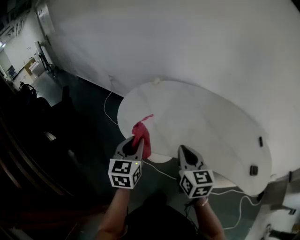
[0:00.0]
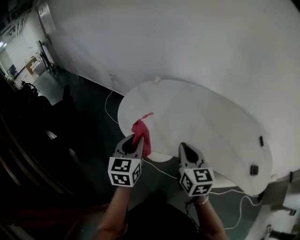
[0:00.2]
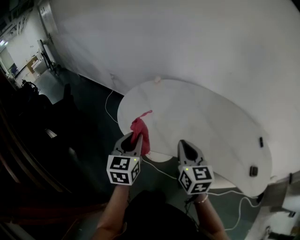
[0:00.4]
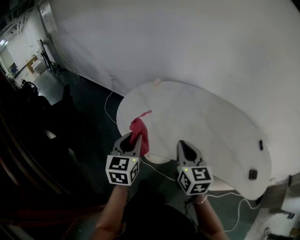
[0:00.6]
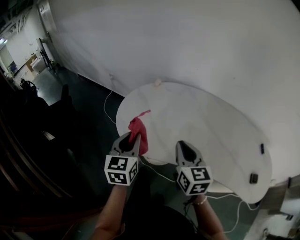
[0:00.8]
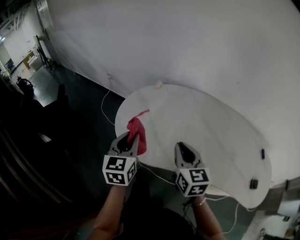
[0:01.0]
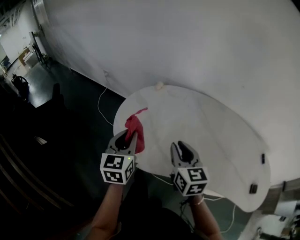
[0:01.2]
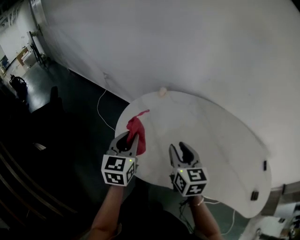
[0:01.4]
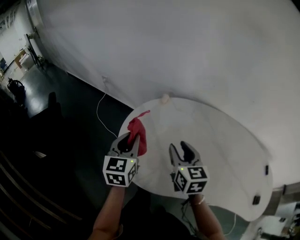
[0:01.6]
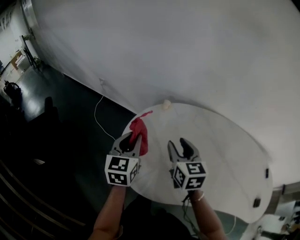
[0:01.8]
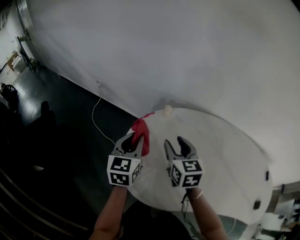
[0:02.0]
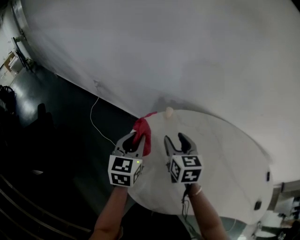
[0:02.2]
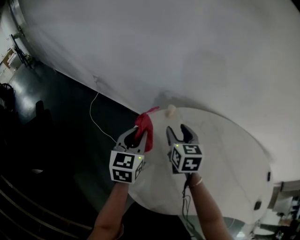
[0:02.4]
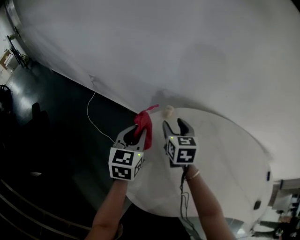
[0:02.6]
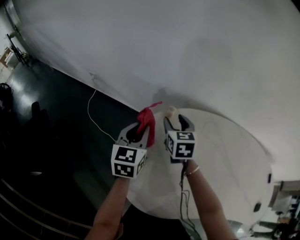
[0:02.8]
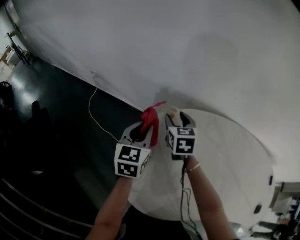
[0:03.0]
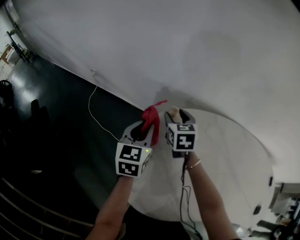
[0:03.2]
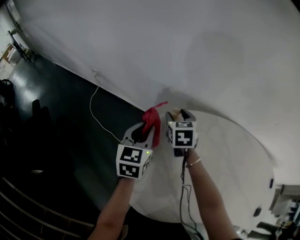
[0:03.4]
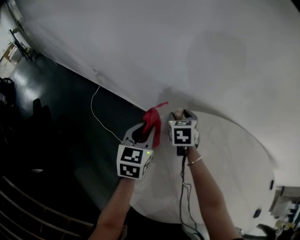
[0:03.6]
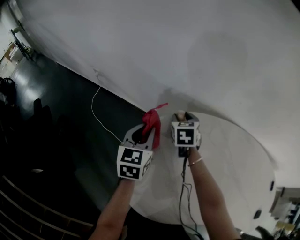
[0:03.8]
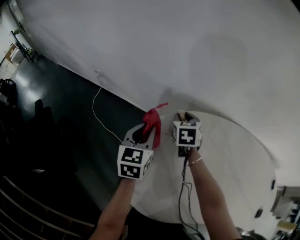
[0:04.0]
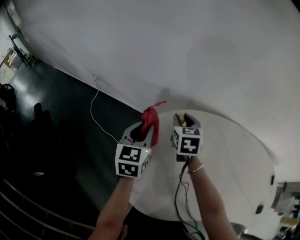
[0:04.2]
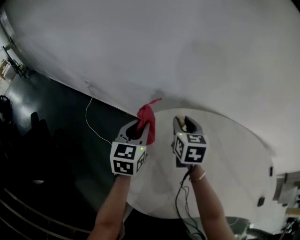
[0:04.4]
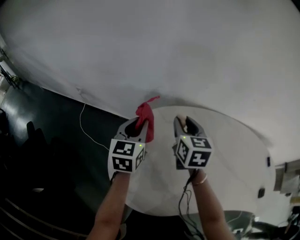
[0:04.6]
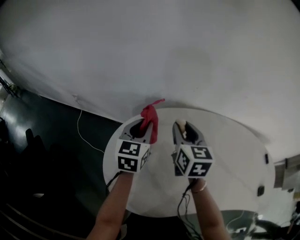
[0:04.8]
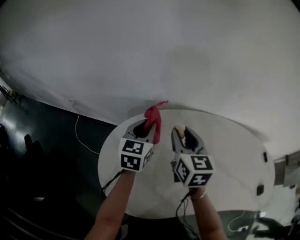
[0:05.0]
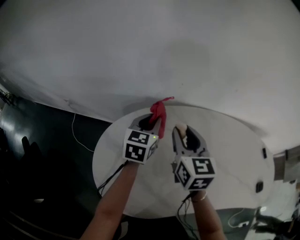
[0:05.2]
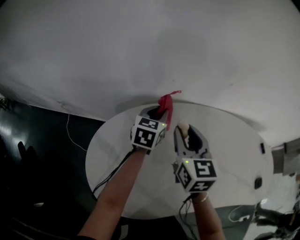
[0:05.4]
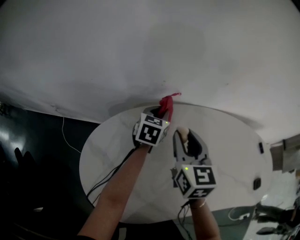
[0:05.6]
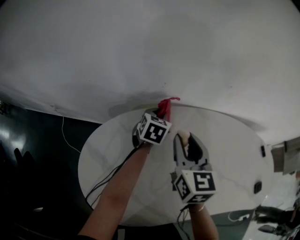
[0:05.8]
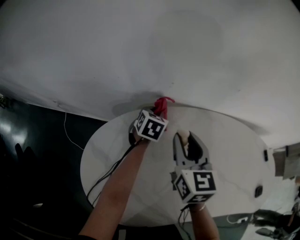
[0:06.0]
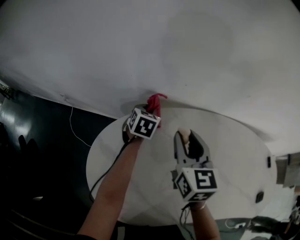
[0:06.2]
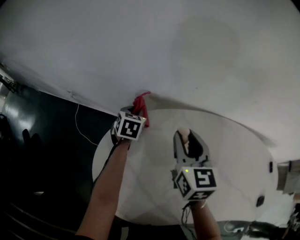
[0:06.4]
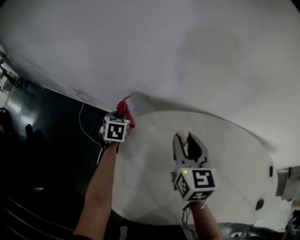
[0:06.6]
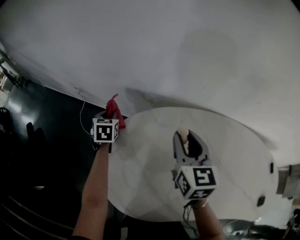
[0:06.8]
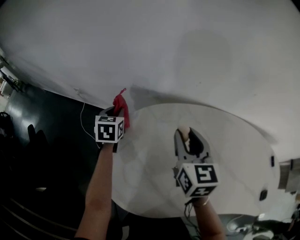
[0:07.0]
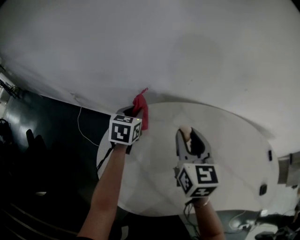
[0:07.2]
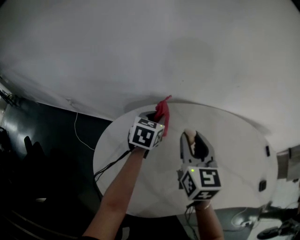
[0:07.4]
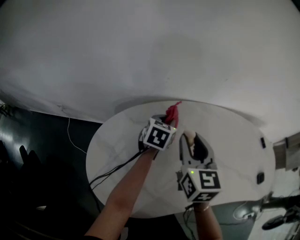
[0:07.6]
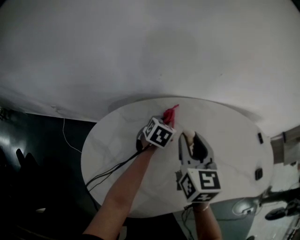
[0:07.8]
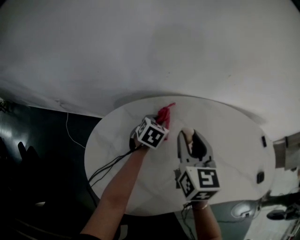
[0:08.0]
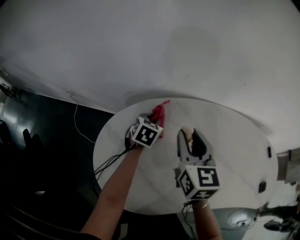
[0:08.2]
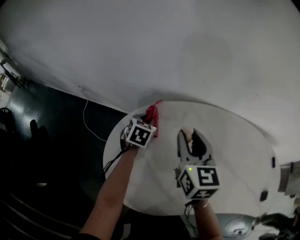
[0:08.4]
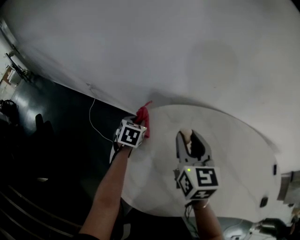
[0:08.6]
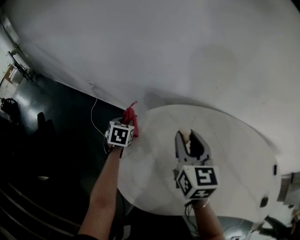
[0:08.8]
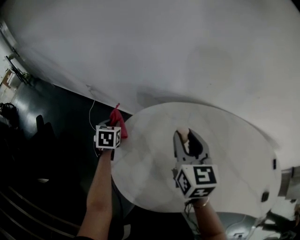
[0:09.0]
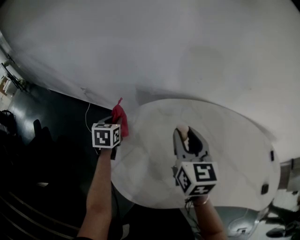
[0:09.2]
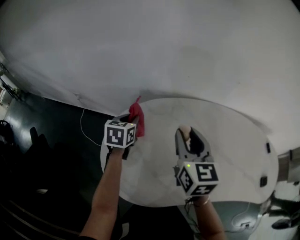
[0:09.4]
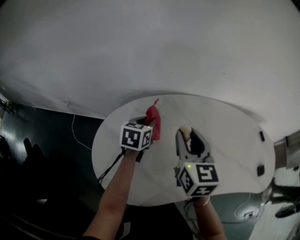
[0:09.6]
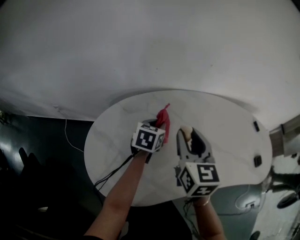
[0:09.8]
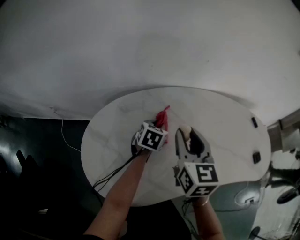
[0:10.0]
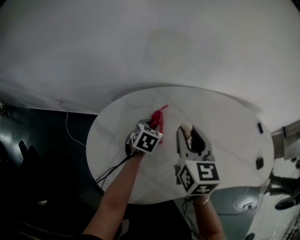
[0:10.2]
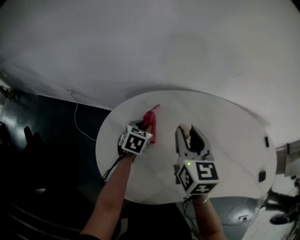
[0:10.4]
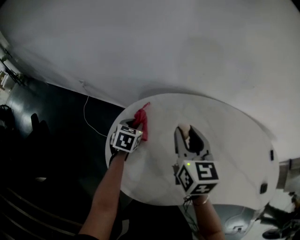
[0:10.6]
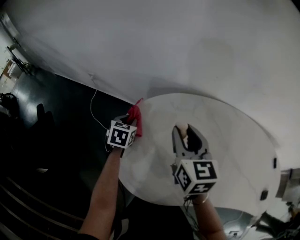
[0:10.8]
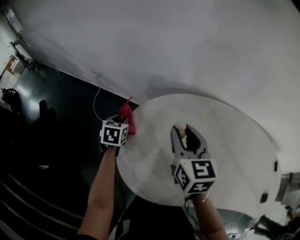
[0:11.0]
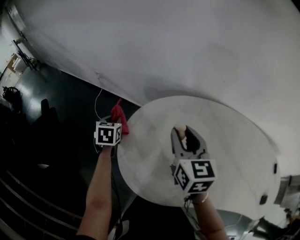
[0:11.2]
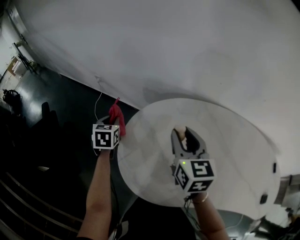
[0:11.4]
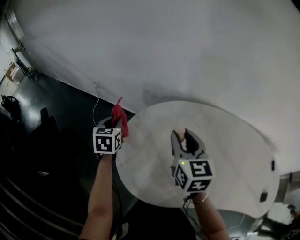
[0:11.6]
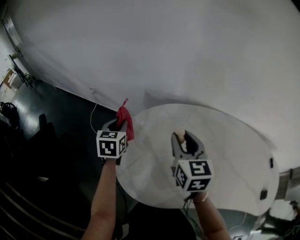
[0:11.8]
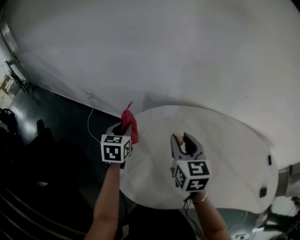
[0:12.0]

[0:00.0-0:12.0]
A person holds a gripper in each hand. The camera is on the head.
0:00.0 to 0:01.6: The two grippers go roughly 25 cm forward. The right gripper opens up.
0:01.6 to 0:03.0: The grippers both shift forward by roughly 20 cm.
0:03.0 to 0:04.4: The right gripper is displaced upward and to the right by some 10 cm.
0:04.4 to 0:06.0: The left gripper shifts approximately 35 cm to the right, forward and downward, and changes its angle by about 30 degrees. Meanwhile the right gripper goes about 20 cm to the right.
0:06.0 to 0:07.6: The right gripper ends up some 10 cm from where it was.
0:07.6 to 0:09.0: The left gripper changes place by roughly 40 cm, and rotates about 40 degrees, while the right gripper shifts by some 15 cm.
0:09.0 to 0:10.4: The left gripper reaches approximately 5 cm upward, then returns, and turns by some 30 degrees.
0:10.4 to 0:12.0: The left gripper ends up some 20 cm from where it was, and turns by approximately 30 degrees.

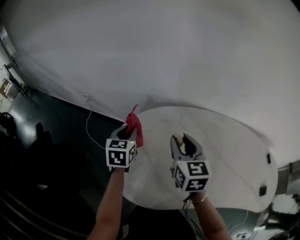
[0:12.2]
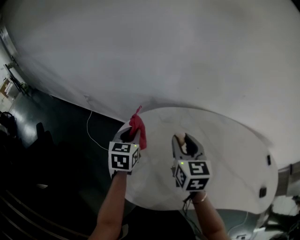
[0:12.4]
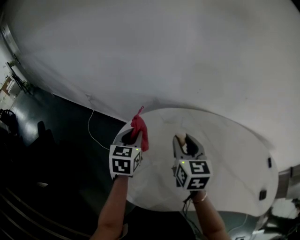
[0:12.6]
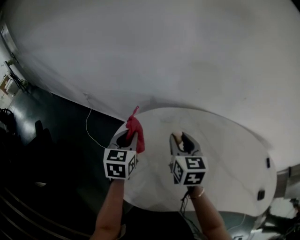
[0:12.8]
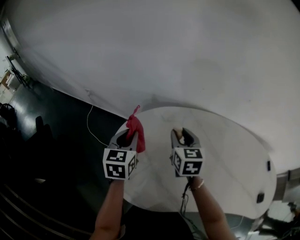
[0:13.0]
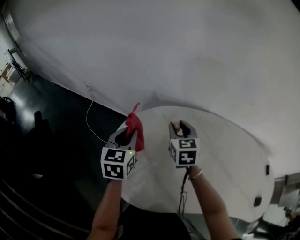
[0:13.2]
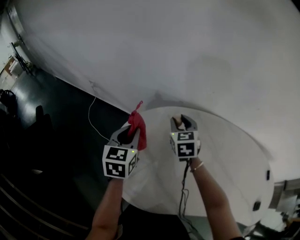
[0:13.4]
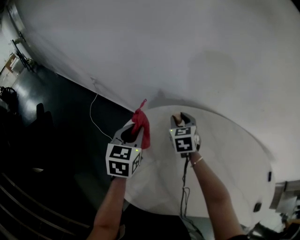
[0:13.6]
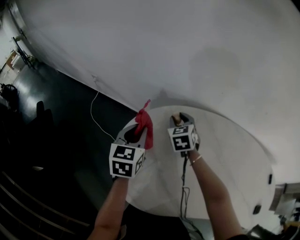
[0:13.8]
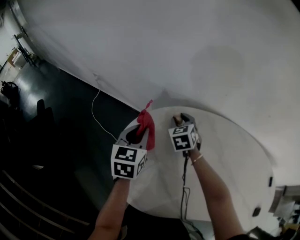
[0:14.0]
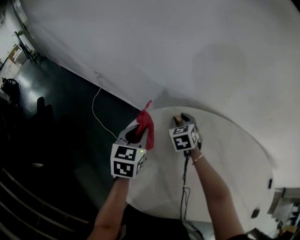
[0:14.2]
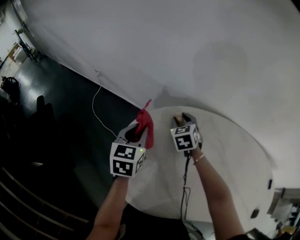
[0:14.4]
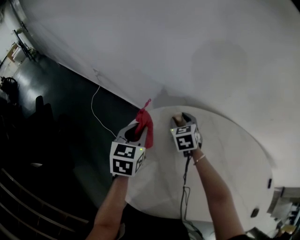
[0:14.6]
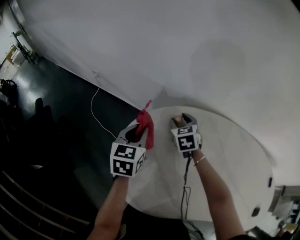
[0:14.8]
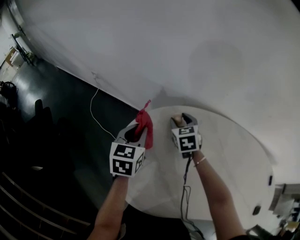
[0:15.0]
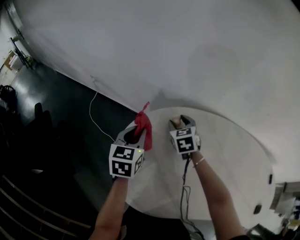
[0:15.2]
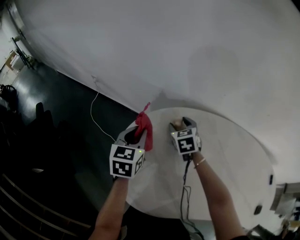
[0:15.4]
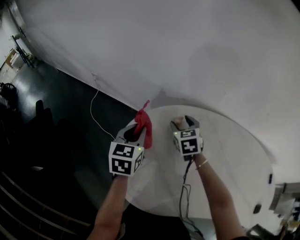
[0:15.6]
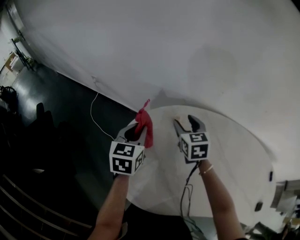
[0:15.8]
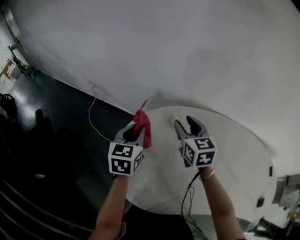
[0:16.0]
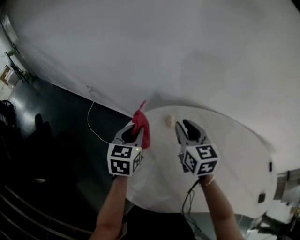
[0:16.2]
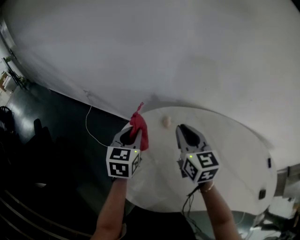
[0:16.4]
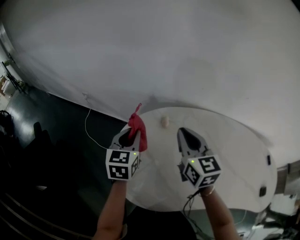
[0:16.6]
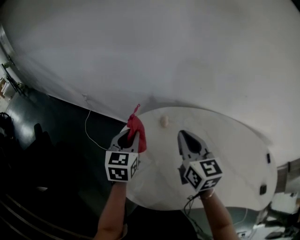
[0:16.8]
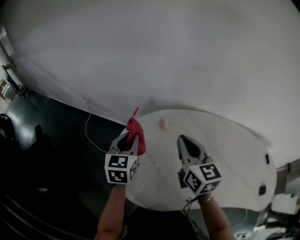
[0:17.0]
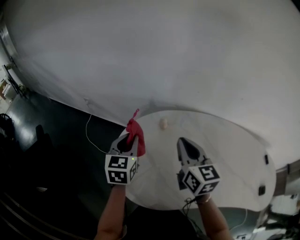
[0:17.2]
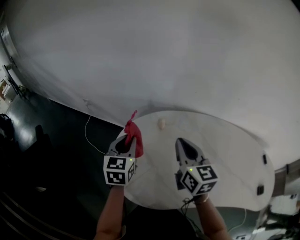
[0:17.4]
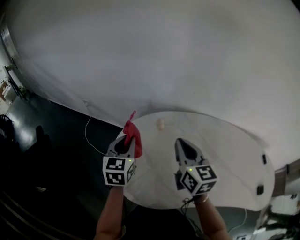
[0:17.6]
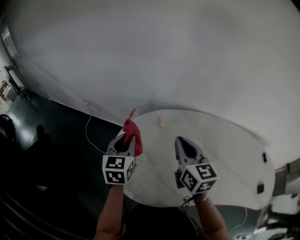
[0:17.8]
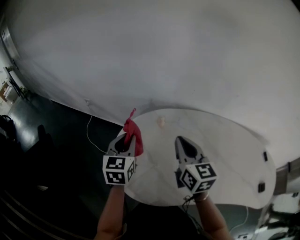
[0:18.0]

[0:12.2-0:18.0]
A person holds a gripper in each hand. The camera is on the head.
0:12.2 to 0:13.6: The right gripper is displaced forward and downward by about 20 cm, and turns by some 30 degrees.
0:13.6 to 0:15.0: There are only small adjustments of the grippers.
0:15.0 to 0:16.6: The right gripper is displaced upward and backward by approximately 25 cm, swivels roughly 30 degrees, and closes, while the left gripper moves upward, some 5 cm.
0:16.6 to 0:18.0: Both grippers move backward, about 5 cm.

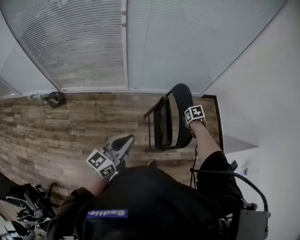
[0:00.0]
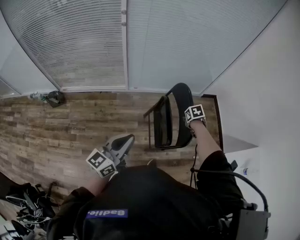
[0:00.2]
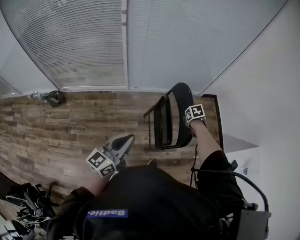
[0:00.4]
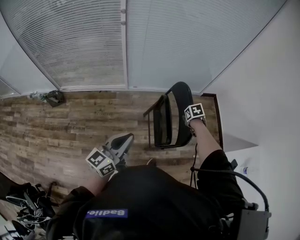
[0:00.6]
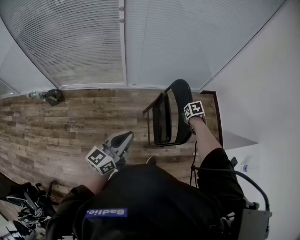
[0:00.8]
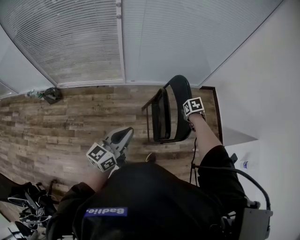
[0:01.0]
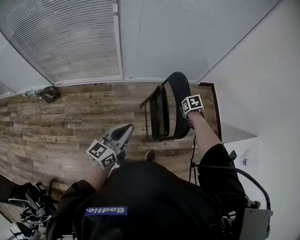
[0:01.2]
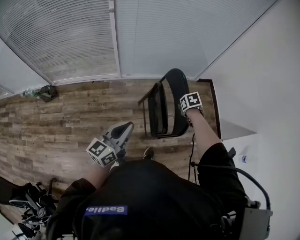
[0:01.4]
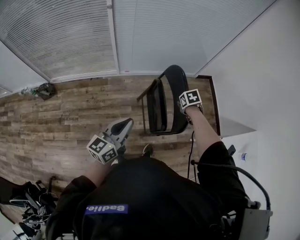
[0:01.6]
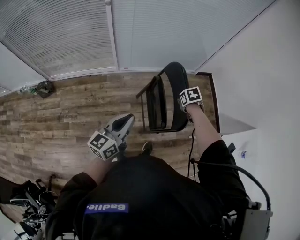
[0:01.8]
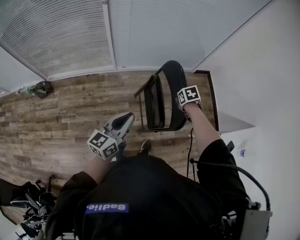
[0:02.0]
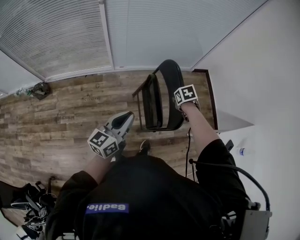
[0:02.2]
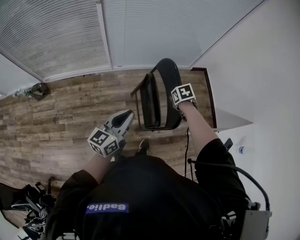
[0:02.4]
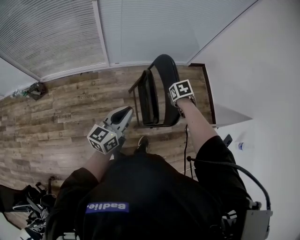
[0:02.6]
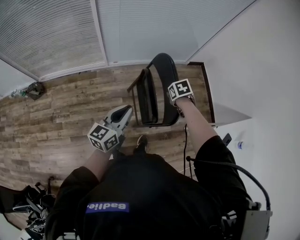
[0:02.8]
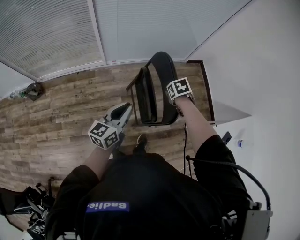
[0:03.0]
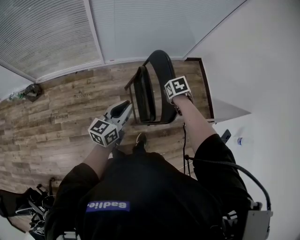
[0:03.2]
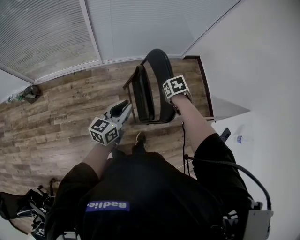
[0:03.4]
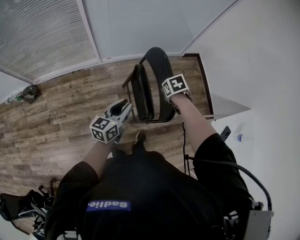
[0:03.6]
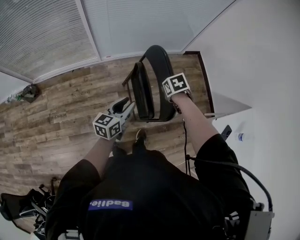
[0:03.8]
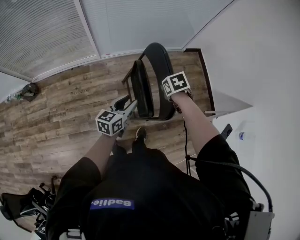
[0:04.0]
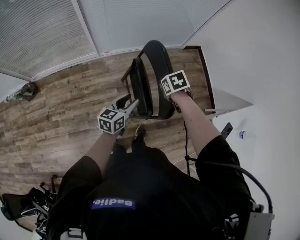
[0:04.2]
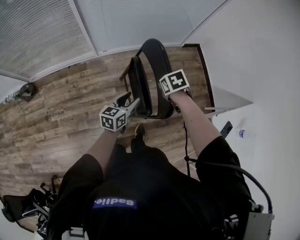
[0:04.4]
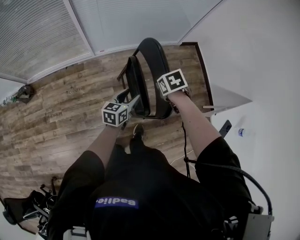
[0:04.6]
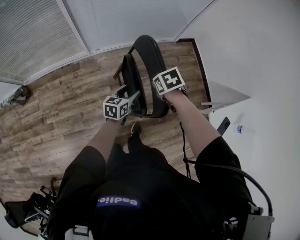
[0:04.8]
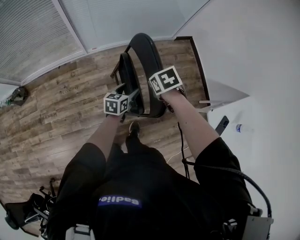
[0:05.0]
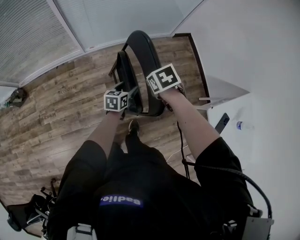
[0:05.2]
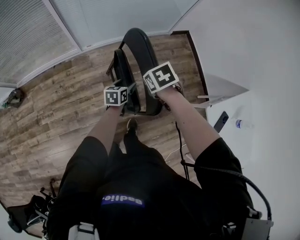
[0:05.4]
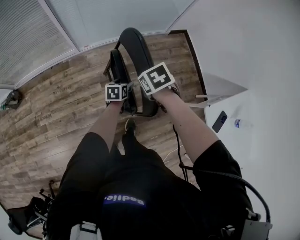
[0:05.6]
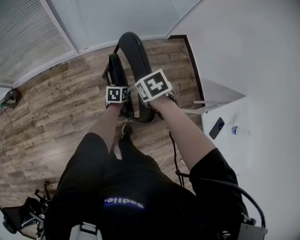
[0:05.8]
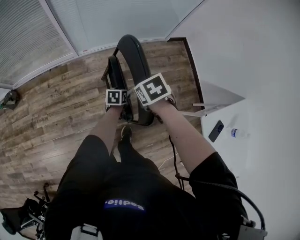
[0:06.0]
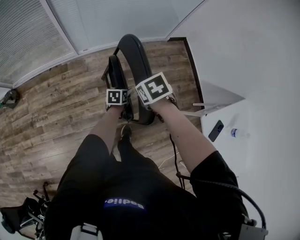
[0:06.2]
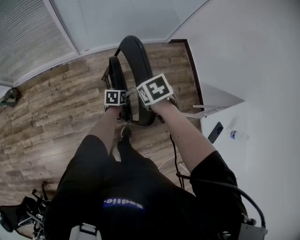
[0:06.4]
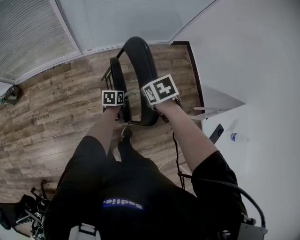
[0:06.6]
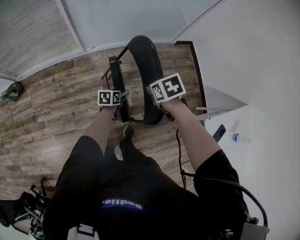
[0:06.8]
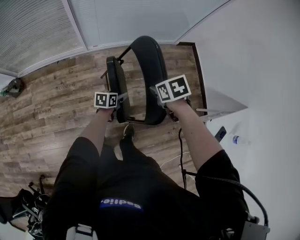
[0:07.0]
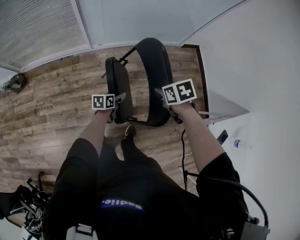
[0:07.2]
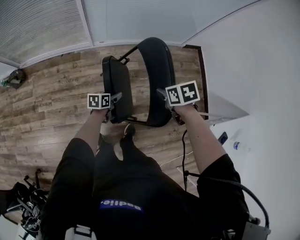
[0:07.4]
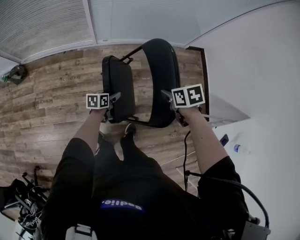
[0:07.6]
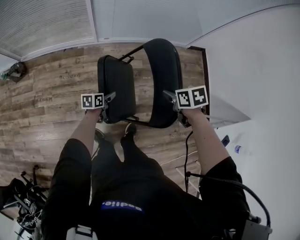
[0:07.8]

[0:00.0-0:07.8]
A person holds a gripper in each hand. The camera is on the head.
0:00.0 to 0:01.6: The left gripper goes some 5 cm downward.
0:01.6 to 0:03.2: The left gripper shifts by approximately 10 cm.
0:03.2 to 0:04.6: The left gripper is displaced downward by about 15 cm, and opens.
0:04.6 to 0:06.2: The left gripper travels downward and to the right by some 20 cm, and swivels roughly 30 degrees.
0:06.2 to 0:07.8: The left gripper is displaced to the left by about 20 cm.
